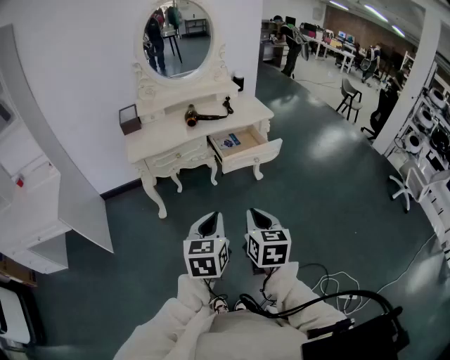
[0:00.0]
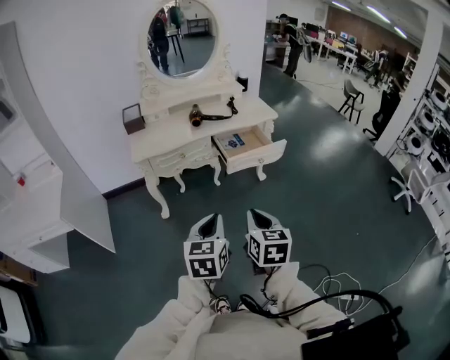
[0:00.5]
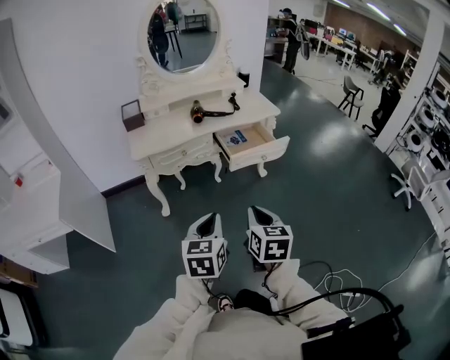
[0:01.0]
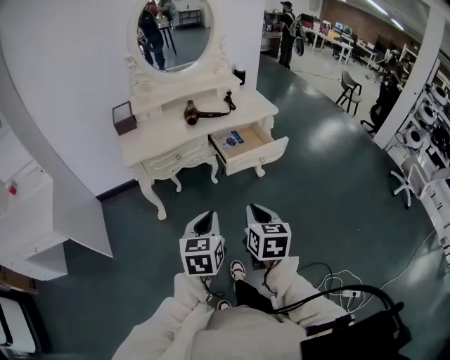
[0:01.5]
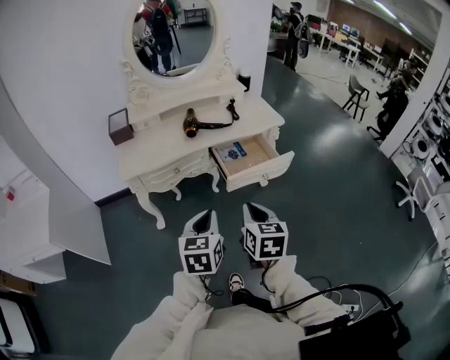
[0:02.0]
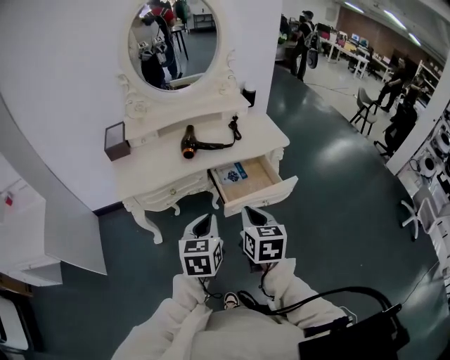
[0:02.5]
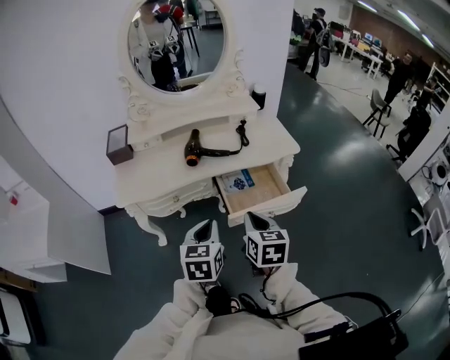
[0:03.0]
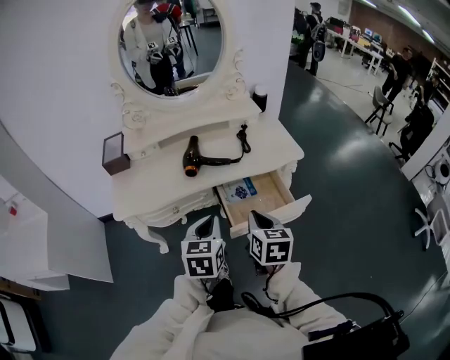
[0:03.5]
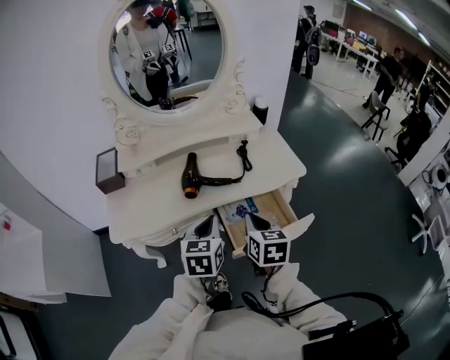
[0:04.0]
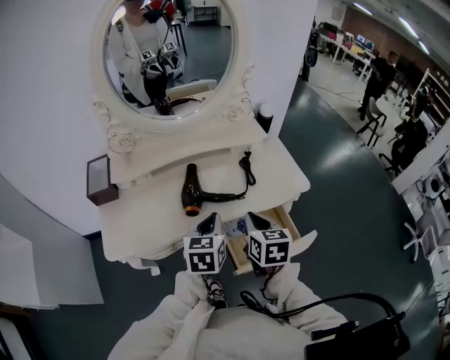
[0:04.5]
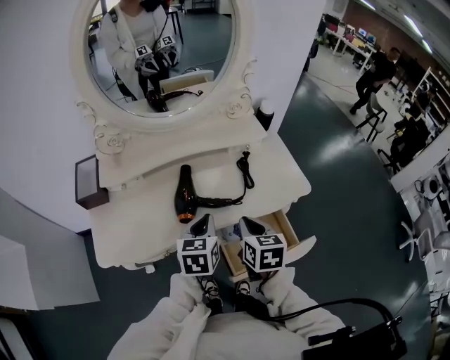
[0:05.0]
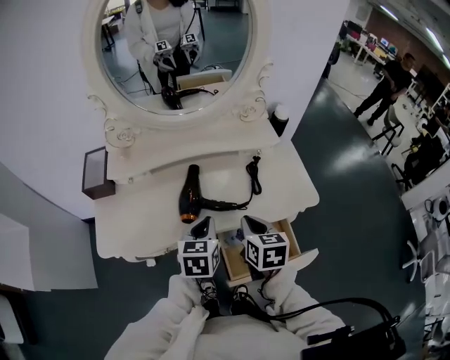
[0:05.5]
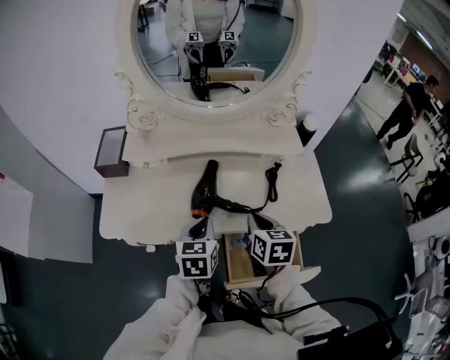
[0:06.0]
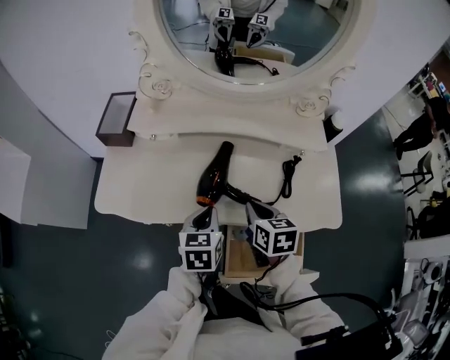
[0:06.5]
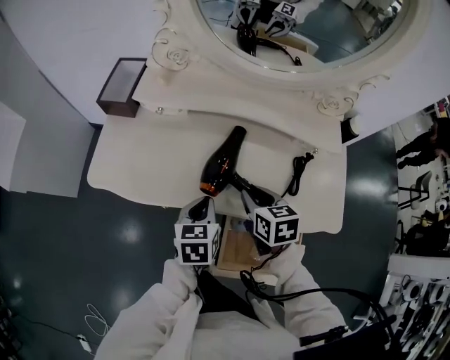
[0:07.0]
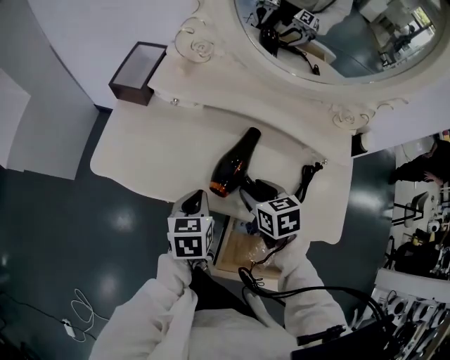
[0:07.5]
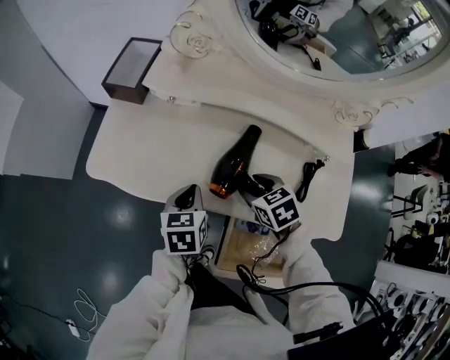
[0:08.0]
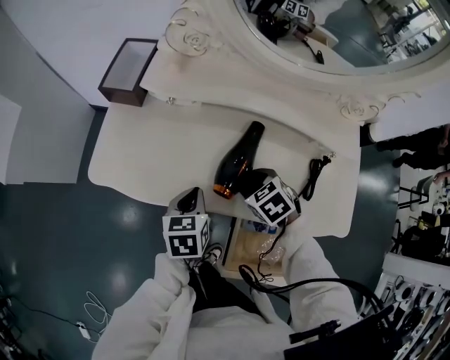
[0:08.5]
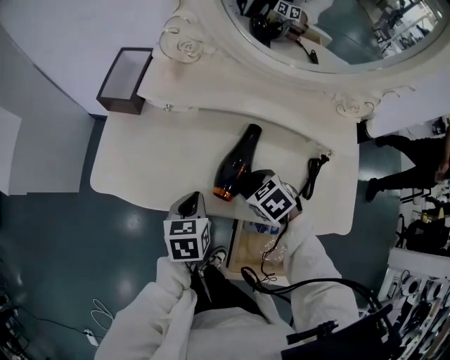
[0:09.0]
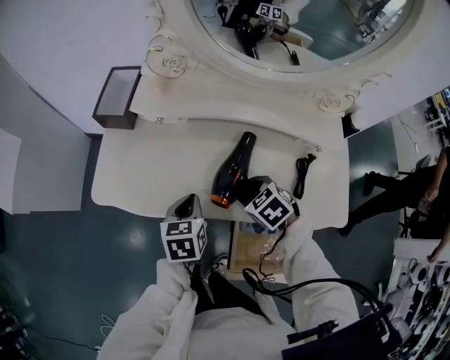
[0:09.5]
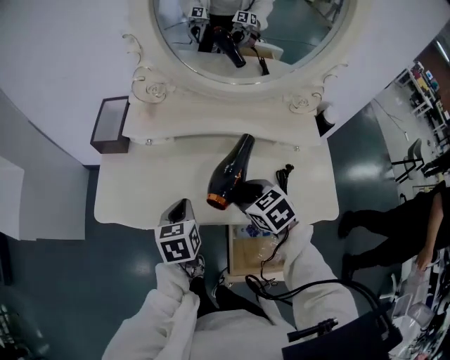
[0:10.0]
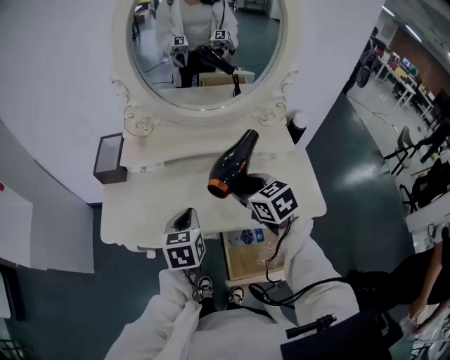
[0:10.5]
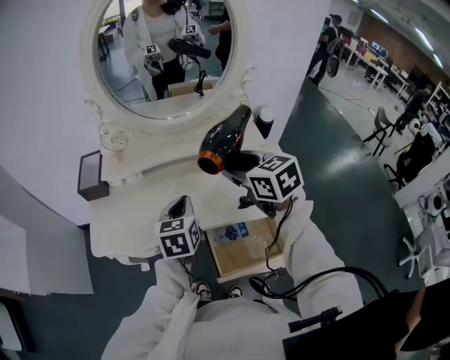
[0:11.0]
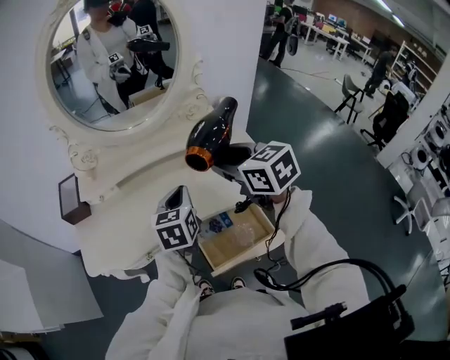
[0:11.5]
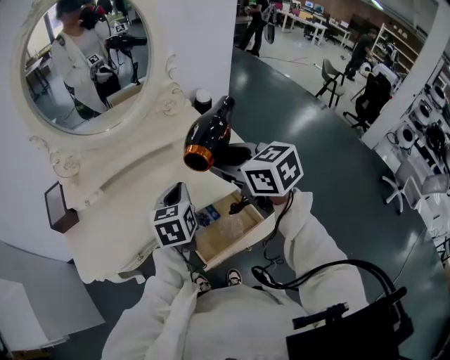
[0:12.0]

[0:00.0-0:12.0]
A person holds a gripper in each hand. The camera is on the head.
0.0 to 2.0 s: Both grippers travel together forward, some 20 cm.
2.0 to 4.0 s: Both grippers move forward, roughly 30 cm.
4.0 to 6.0 s: The left gripper is displaced forward and downward by some 15 cm. The right gripper heads forward, covering about 20 cm.
6.0 to 8.0 s: The right gripper ends up approximately 15 cm from where it was, turns by about 50 degrees, and opens; the left gripper heads downward, covering about 10 cm, and swivels some 20 degrees.
8.0 to 10.0 s: The grippers both shift upward by some 5 cm.
10.0 to 12.0 s: The right gripper heads upward, covering approximately 25 cm, and rotates roughly 40 degrees, while the left gripper ends up approximately 25 cm from where it was, and turns by roughly 40 degrees.

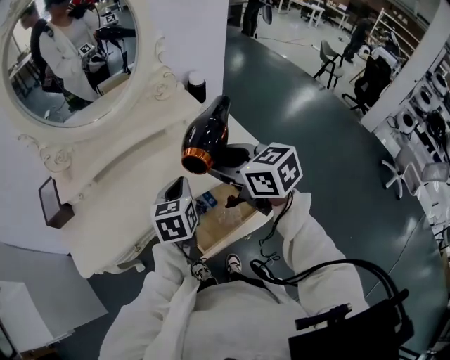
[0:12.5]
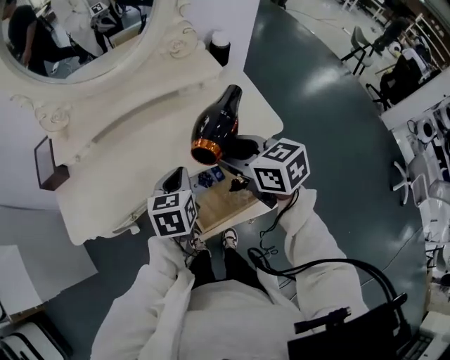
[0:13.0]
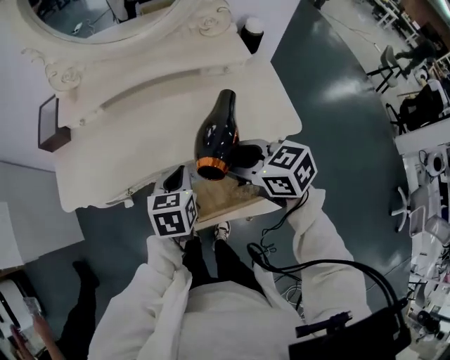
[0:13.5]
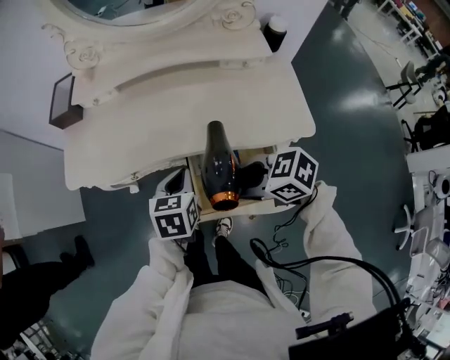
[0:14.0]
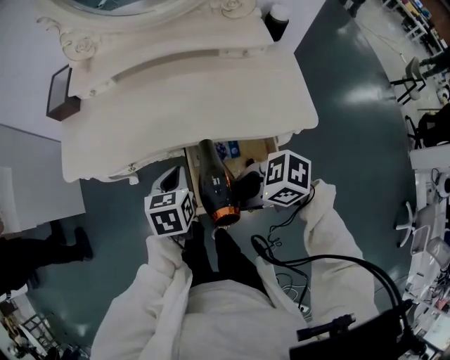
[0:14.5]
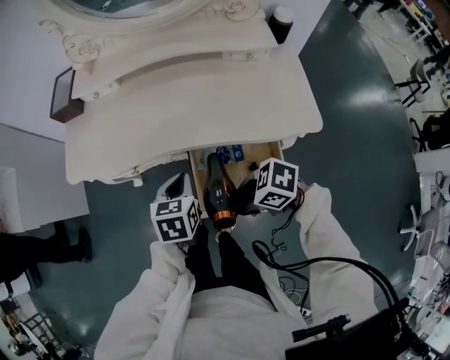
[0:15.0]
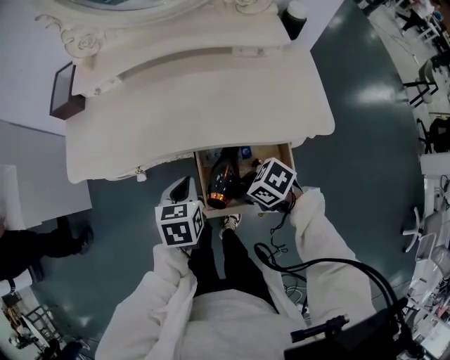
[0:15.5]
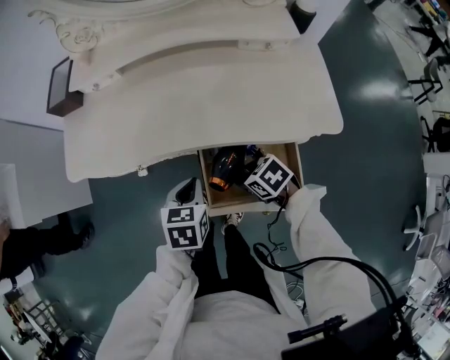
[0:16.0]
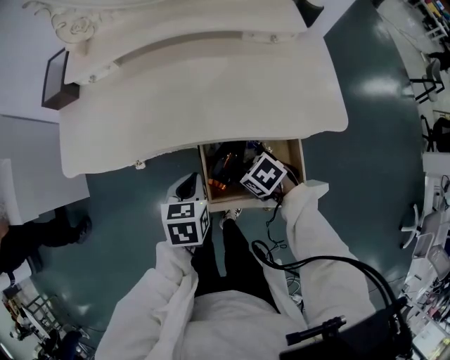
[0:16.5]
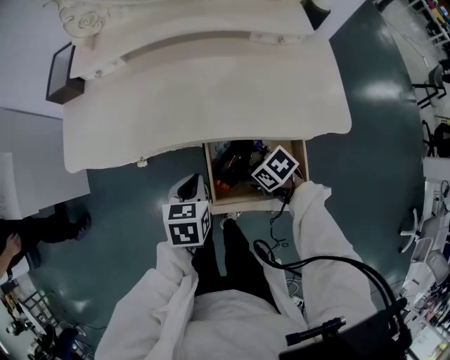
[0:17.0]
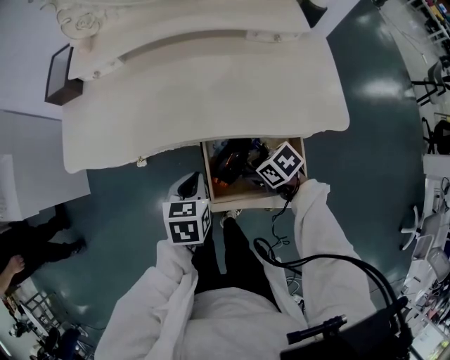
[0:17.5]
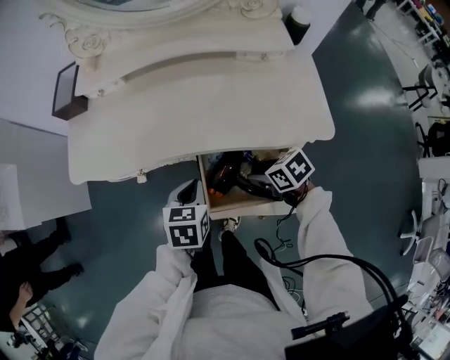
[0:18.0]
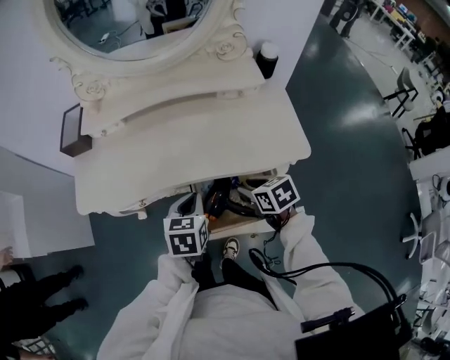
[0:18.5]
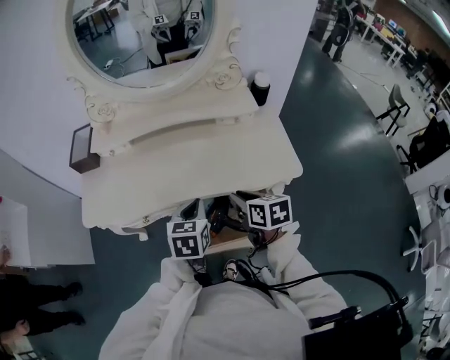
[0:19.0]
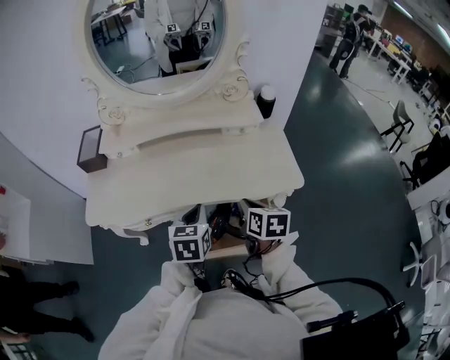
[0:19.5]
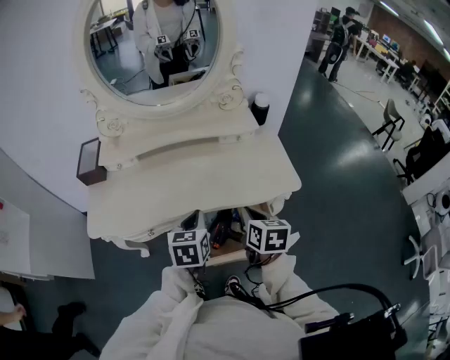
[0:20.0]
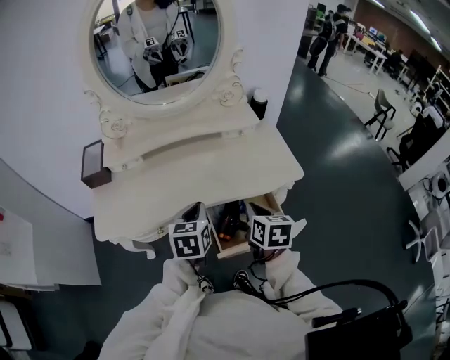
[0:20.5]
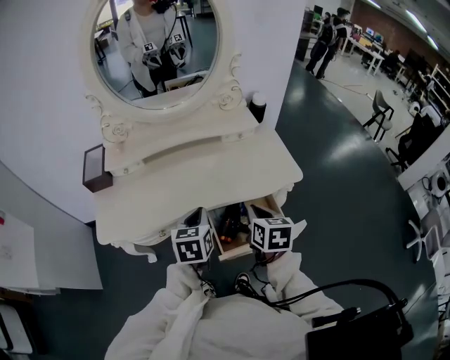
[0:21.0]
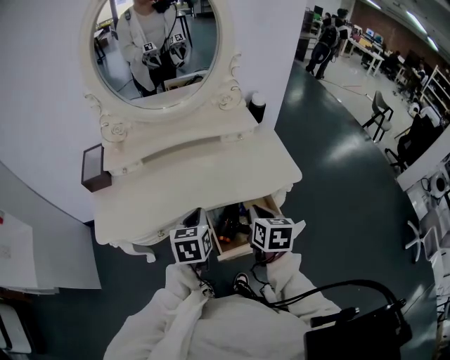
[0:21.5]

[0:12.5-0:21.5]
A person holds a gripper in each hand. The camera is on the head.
12.5 to 14.5 s: The left gripper moves downward, some 15 cm, and turns by roughly 30 degrees, while the right gripper shifts some 20 cm downward, and changes its angle by about 70 degrees.
14.5 to 17.0 s: The right gripper moves downward, approximately 20 cm, and rotates roughly 30 degrees. Meanwhile the left gripper moves downward, approximately 5 cm.
17.0 to 19.5 s: The left gripper moves upward, about 15 cm. The right gripper goes roughly 20 cm upward, turns by about 60 degrees, and closes up.
19.5 to 21.5 s: The left gripper heads to the left, covering roughly 5 cm; the right gripper is displaced backward by about 5 cm.

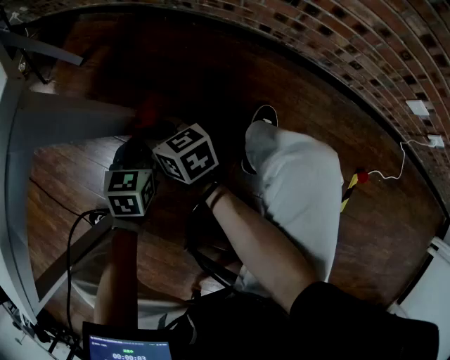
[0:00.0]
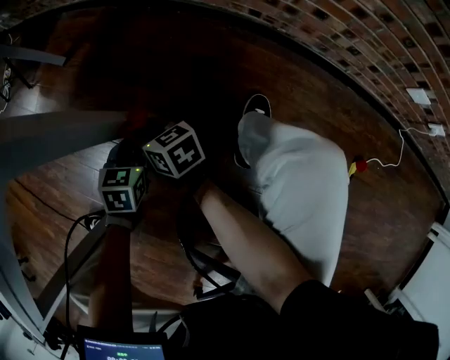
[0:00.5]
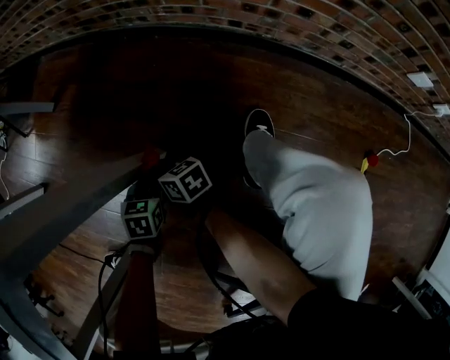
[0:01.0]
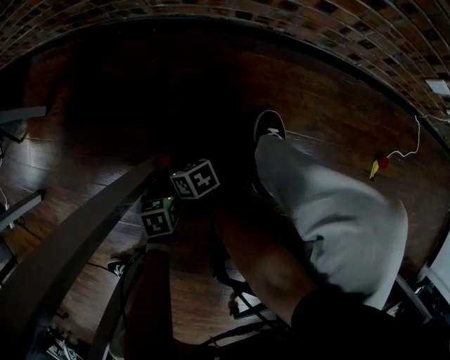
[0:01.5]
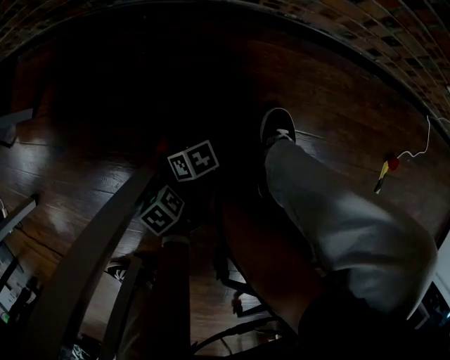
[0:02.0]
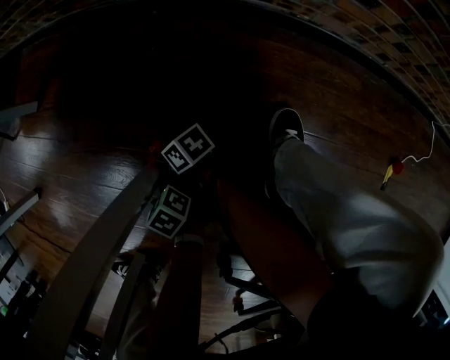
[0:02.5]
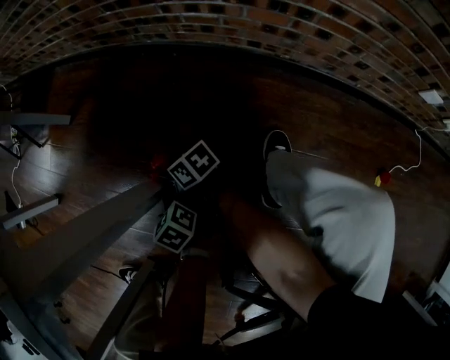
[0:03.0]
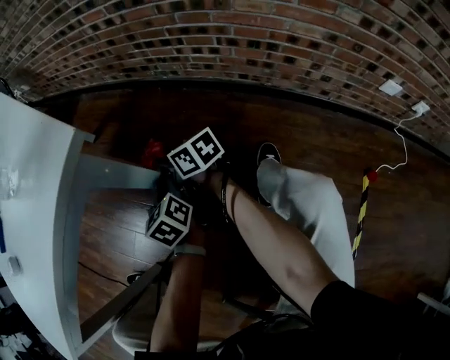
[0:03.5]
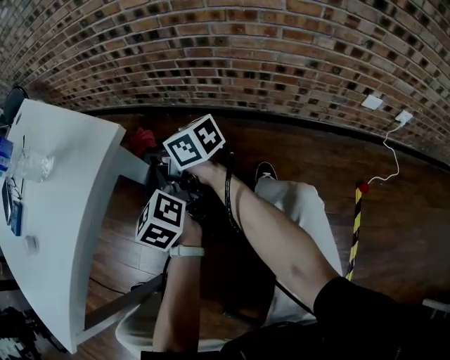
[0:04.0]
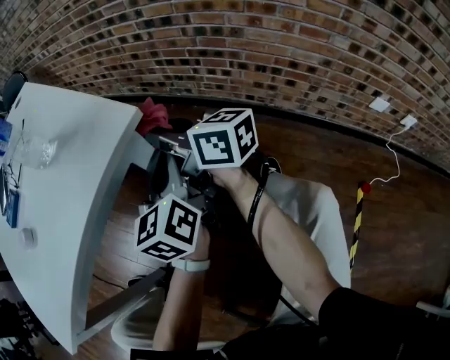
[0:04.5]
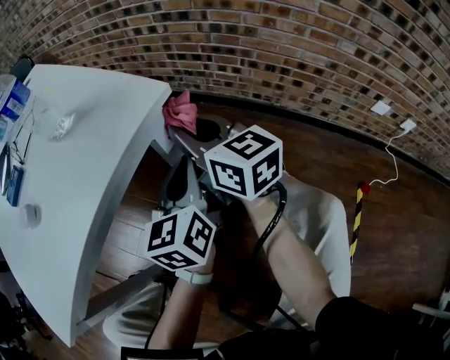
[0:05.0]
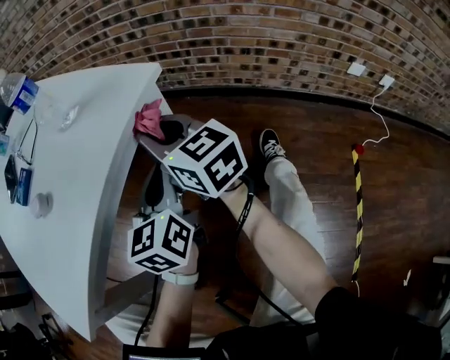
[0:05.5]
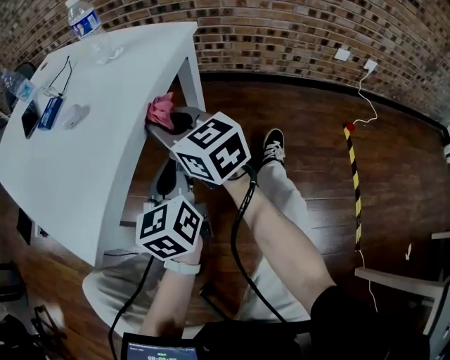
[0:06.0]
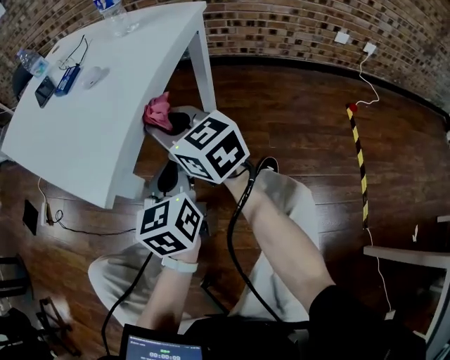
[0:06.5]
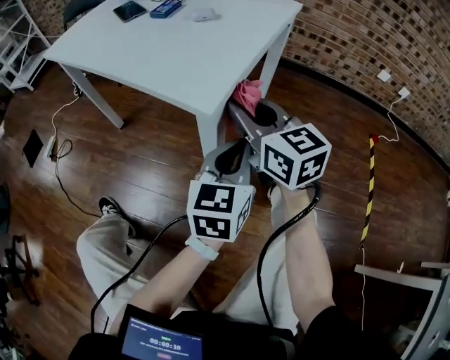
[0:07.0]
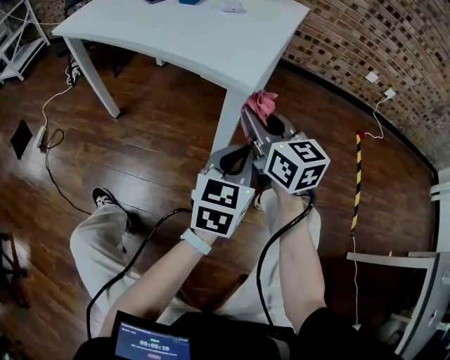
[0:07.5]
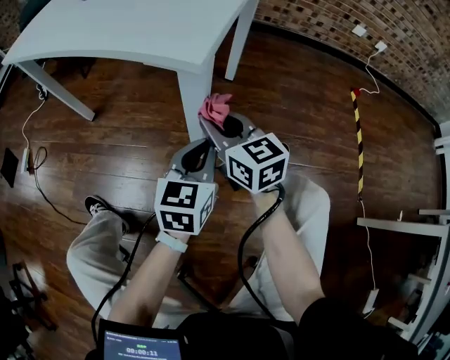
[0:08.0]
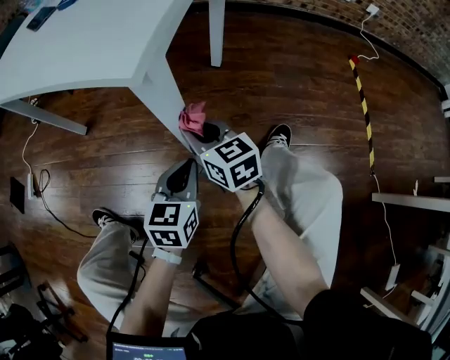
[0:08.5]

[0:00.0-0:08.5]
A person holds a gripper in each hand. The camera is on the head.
0.0 to 2.0 s: The grippers both shift downward by some 35 cm. The left gripper swivels approximately 40 degrees, while the right gripper changes its angle by some 40 degrees.
2.0 to 4.0 s: The two grippers go roughly 50 cm upward. The left gripper points its fingers some 50 degrees further upward, while the right gripper turns by approximately 50 degrees.
4.0 to 6.5 s: The two grippers travel together, approximately 40 cm. The right gripper swivels approximately 40 degrees. The left gripper rotates roughly 30 degrees.
6.5 to 8.5 s: Both grippers travel together downward, backward and to the left, about 25 cm. The right gripper changes its angle by roughly 20 degrees. Meanwhile the left gripper turns by roughly 30 degrees.
